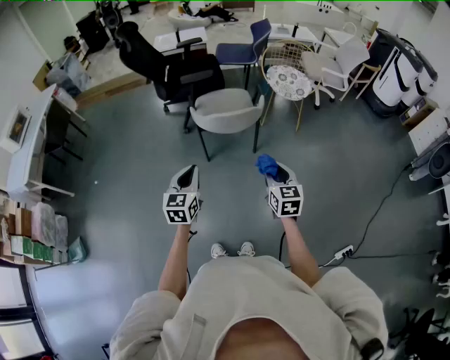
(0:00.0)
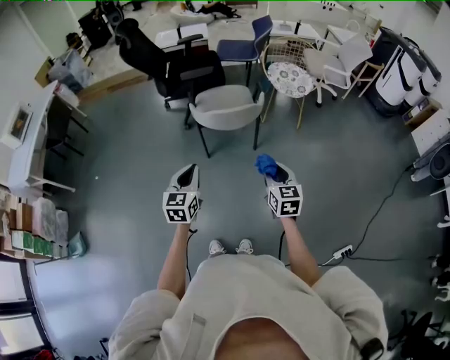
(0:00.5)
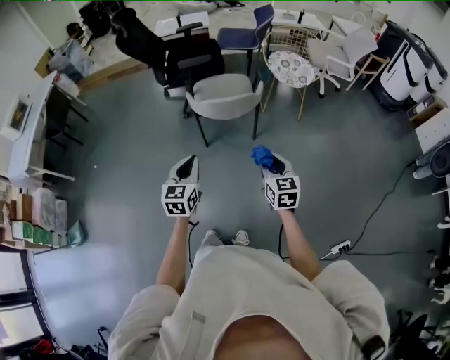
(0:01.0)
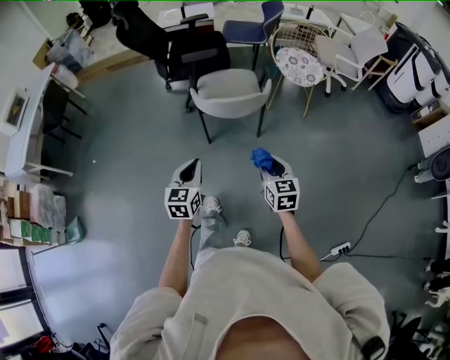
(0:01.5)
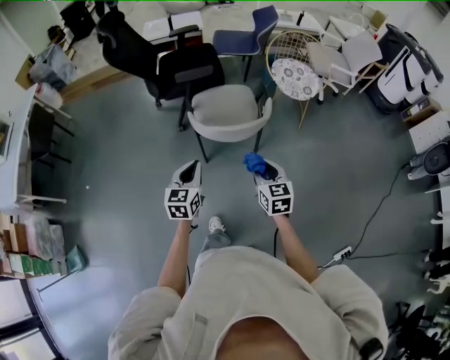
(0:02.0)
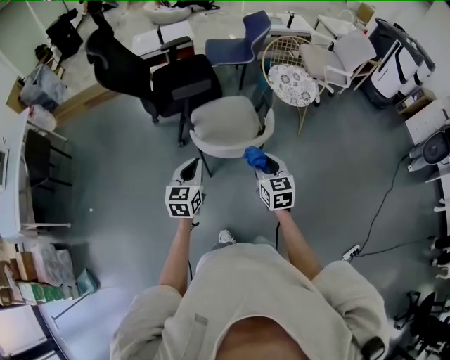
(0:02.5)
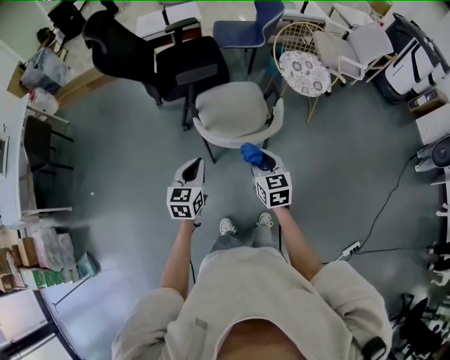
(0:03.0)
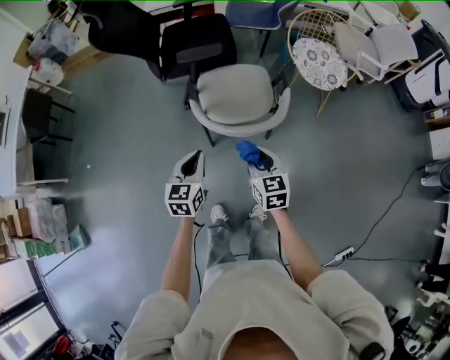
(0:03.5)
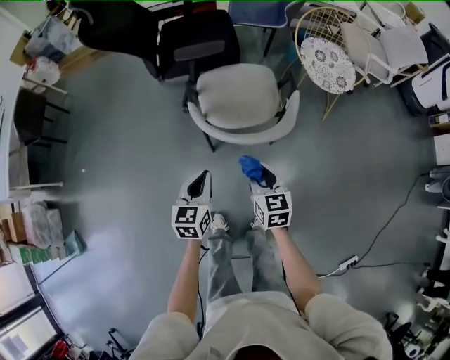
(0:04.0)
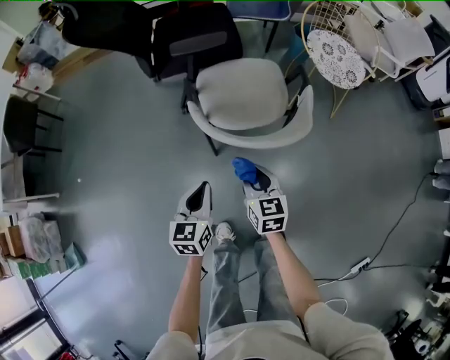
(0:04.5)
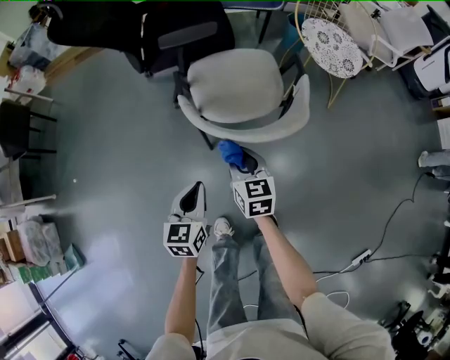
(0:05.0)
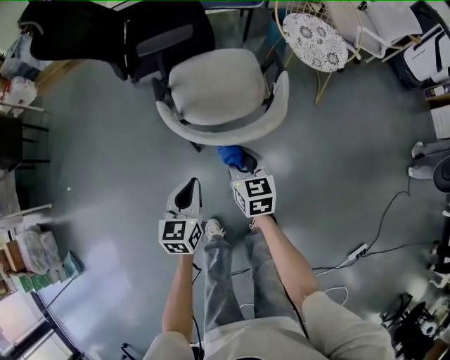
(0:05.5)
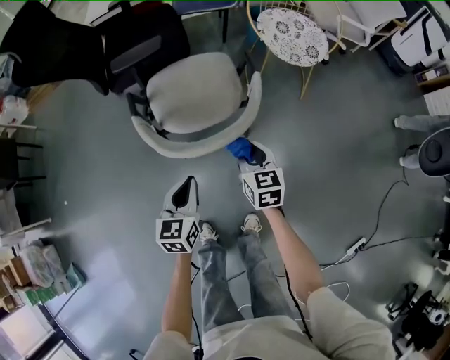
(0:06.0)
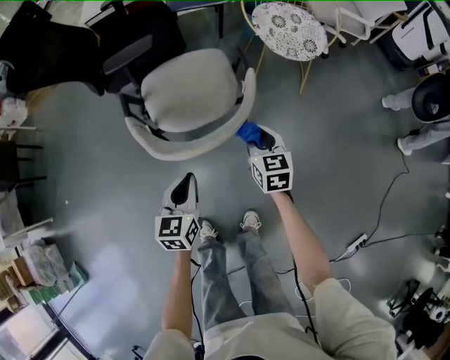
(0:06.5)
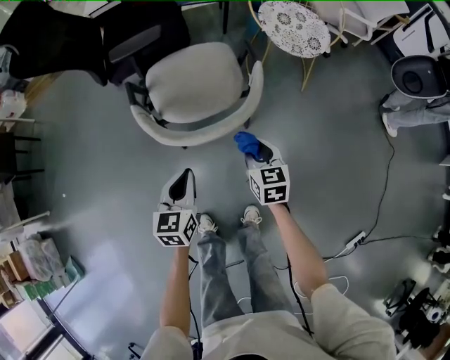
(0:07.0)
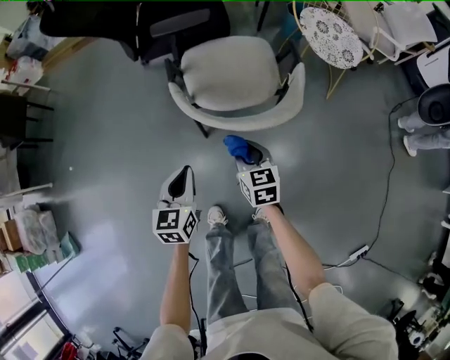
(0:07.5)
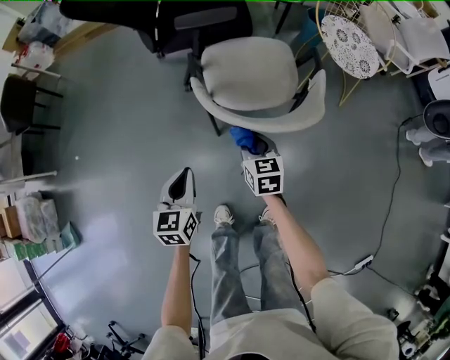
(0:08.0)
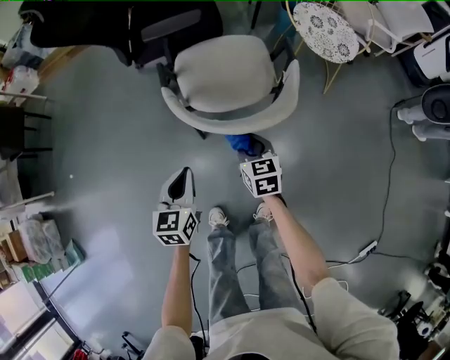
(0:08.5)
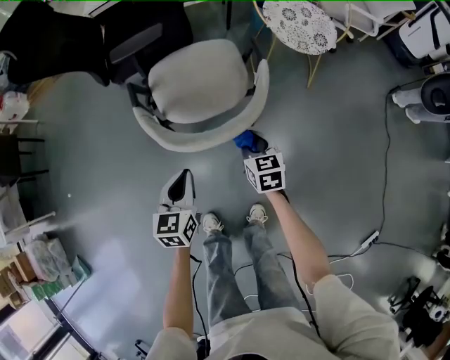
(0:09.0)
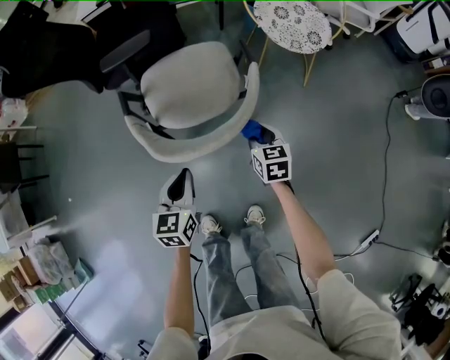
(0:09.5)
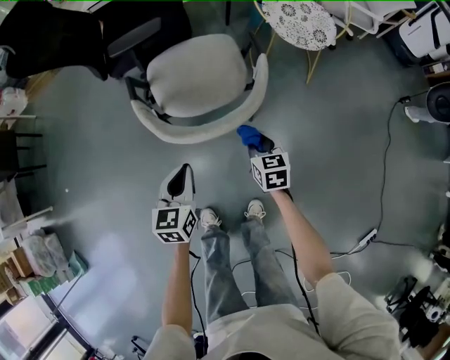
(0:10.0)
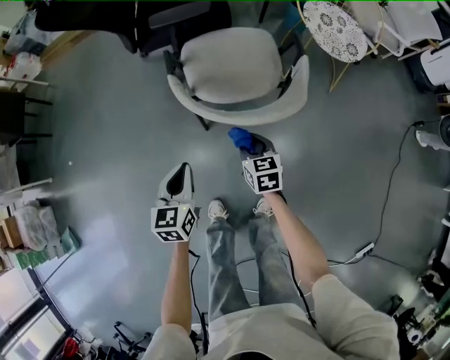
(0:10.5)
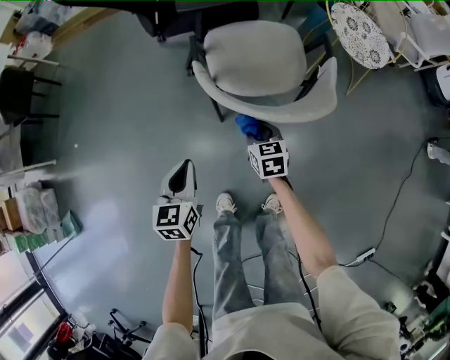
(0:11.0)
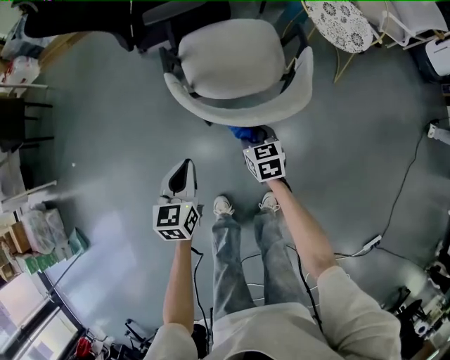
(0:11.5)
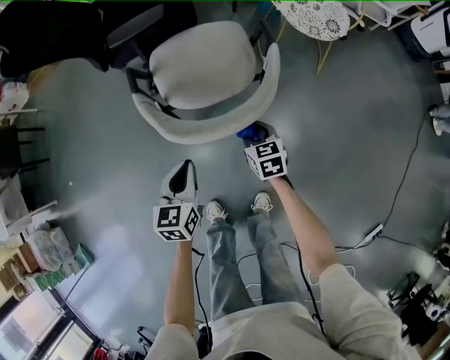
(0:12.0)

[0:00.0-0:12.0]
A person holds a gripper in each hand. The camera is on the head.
0:00.0 to 0:02.0: The left gripper is displaced forward by roughly 20 cm. Meanwhile the right gripper moves forward and to the left, approximately 20 cm.
0:02.0 to 0:04.0: Both grippers move downward and forward, approximately 20 cm.
0:04.0 to 0:06.0: The left gripper goes approximately 15 cm to the right and downward, while the right gripper goes approximately 15 cm to the right, forward and downward.
0:06.0 to 0:08.0: Both grippers travel together to the left, approximately 20 cm.
0:08.0 to 0:10.0: Both grippers travel together to the right, some 20 cm.
0:10.0 to 0:12.0: The right gripper goes to the left and returns, approximately 20 cm each way. The left gripper travels to the left and back again, approximately 15 cm each way.

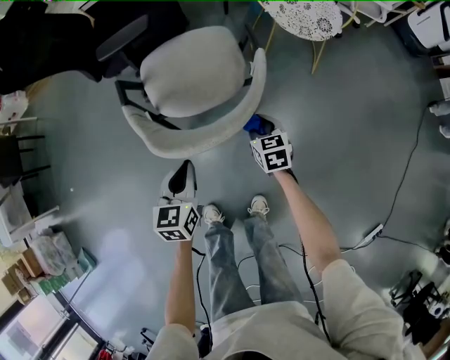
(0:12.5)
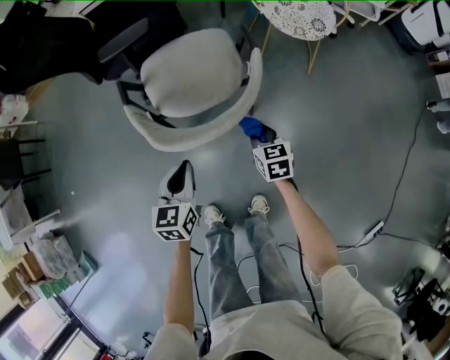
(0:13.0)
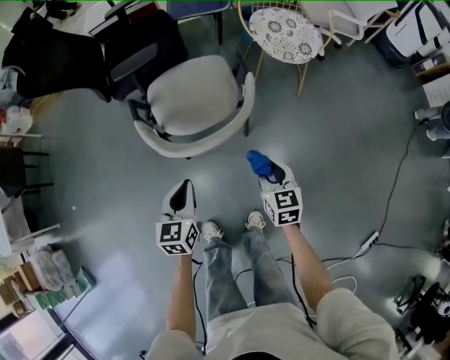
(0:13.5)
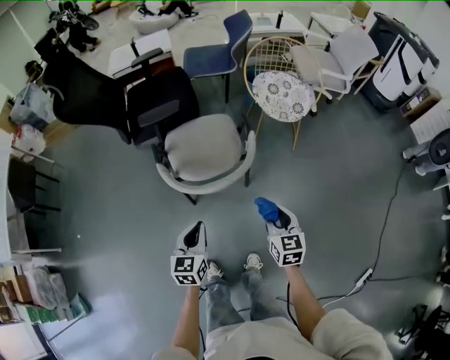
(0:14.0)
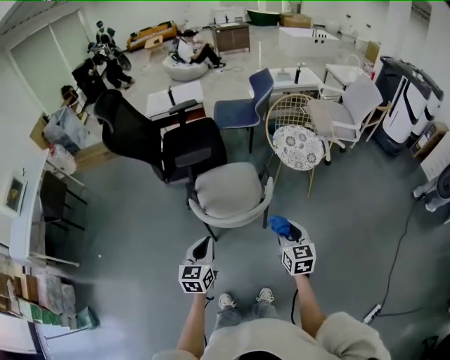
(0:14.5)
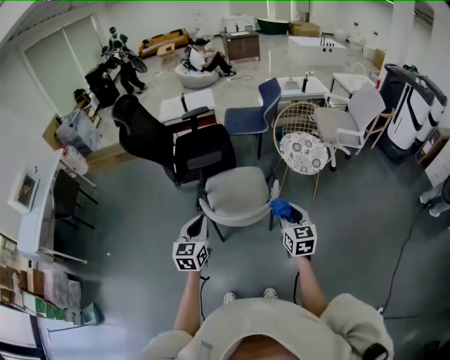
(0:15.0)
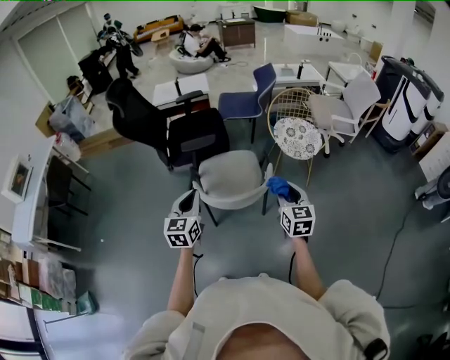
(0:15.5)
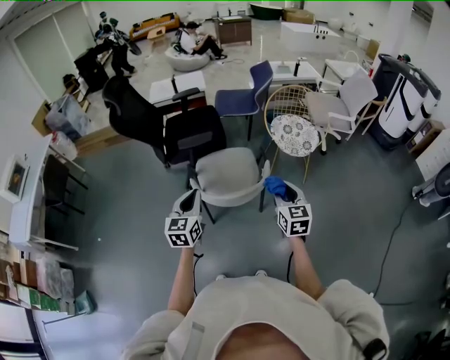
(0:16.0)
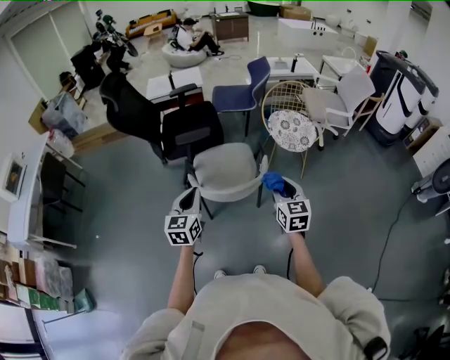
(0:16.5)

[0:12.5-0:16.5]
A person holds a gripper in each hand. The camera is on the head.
0:12.5 to 0:14.5: The two grippers go roughly 30 cm upward. The right gripper turns by approximately 20 degrees.
0:14.5 to 0:16.5: The grippers both shift upward by approximately 10 cm.

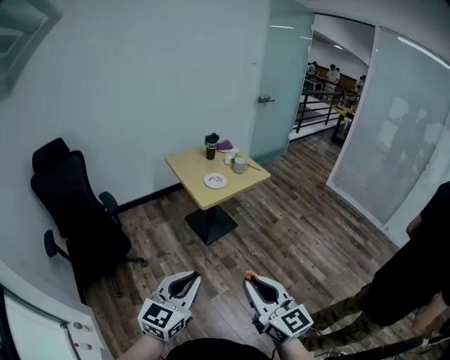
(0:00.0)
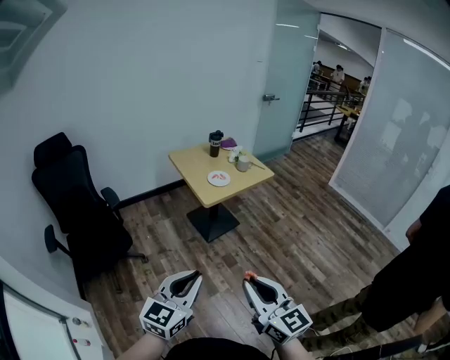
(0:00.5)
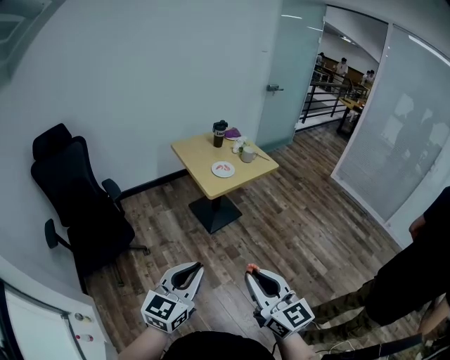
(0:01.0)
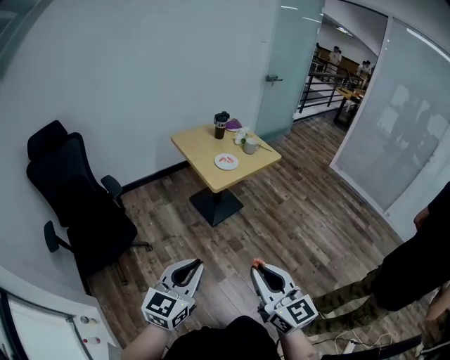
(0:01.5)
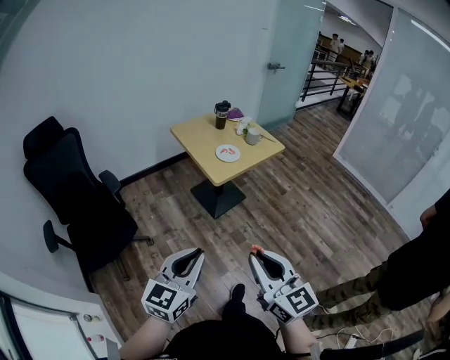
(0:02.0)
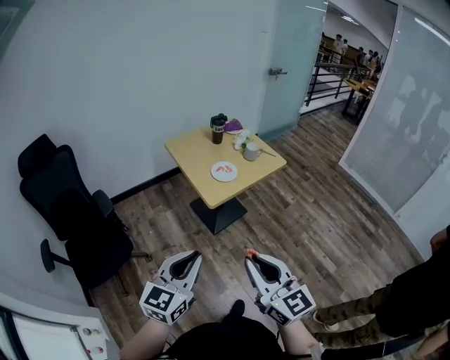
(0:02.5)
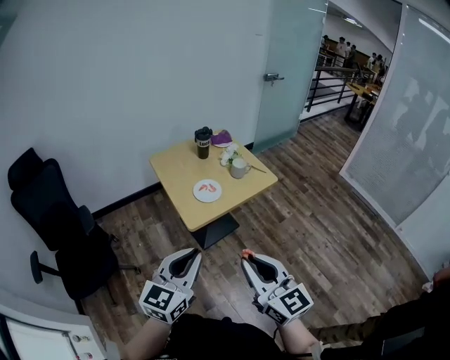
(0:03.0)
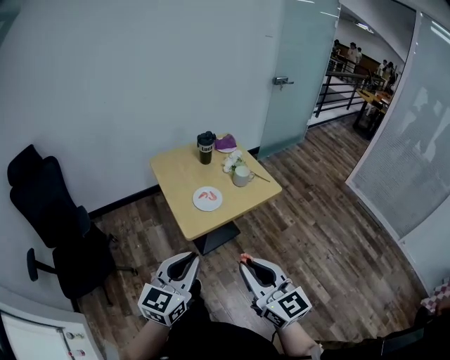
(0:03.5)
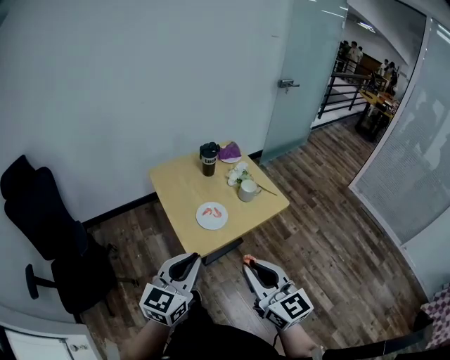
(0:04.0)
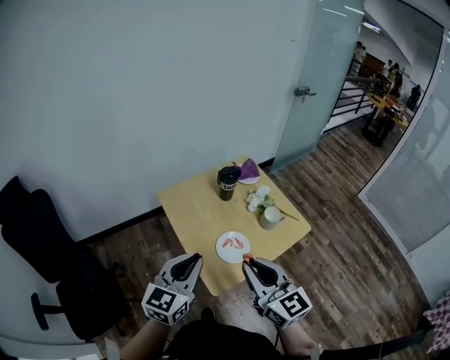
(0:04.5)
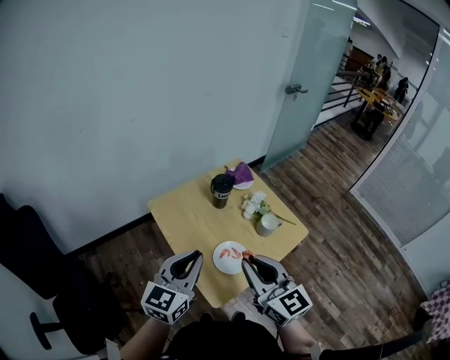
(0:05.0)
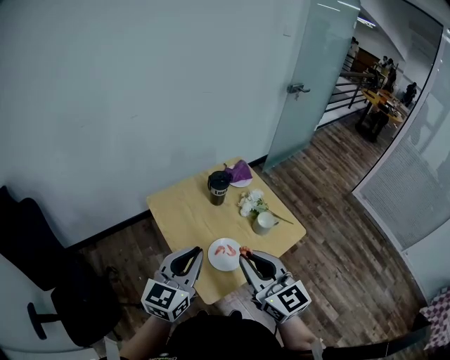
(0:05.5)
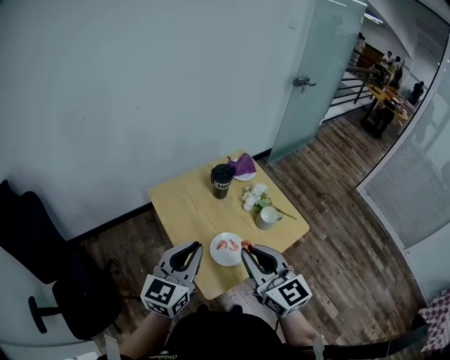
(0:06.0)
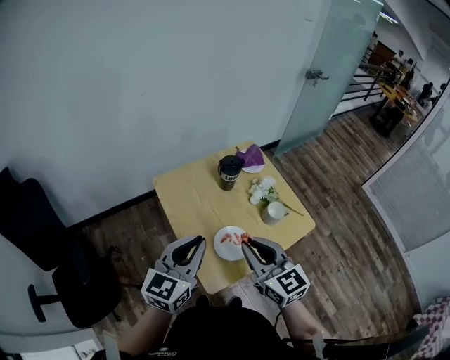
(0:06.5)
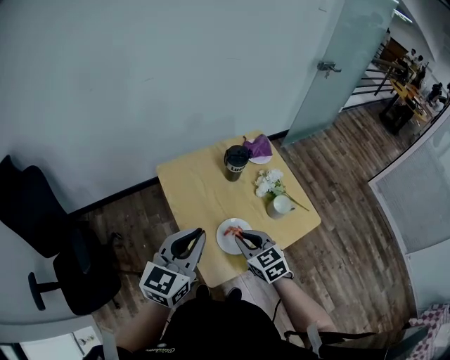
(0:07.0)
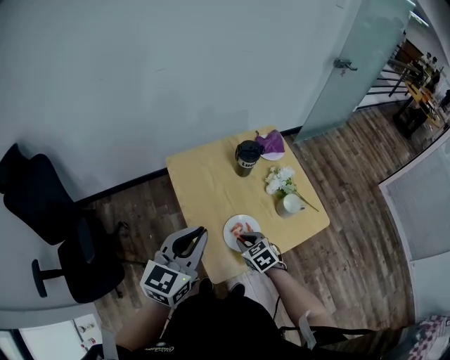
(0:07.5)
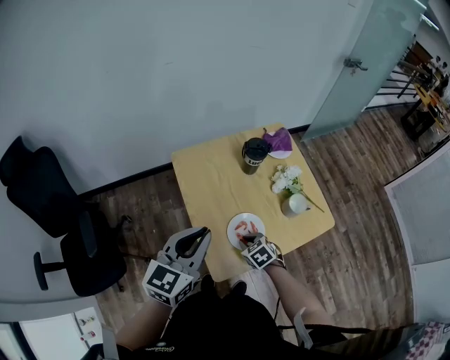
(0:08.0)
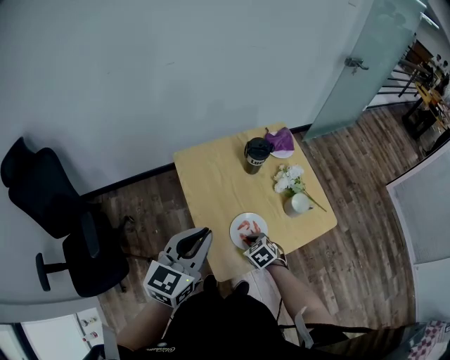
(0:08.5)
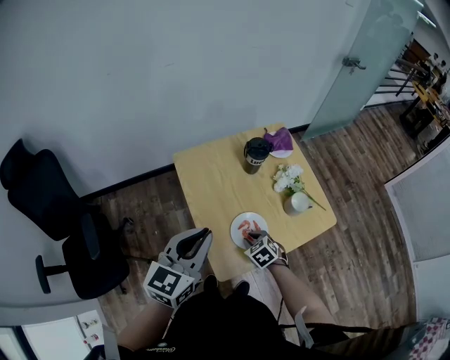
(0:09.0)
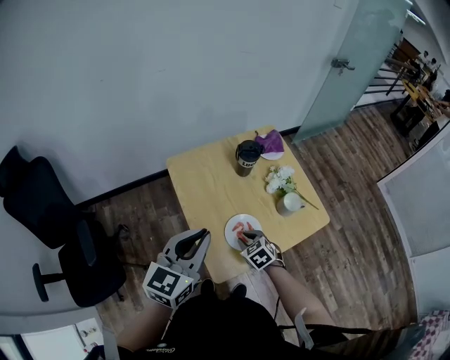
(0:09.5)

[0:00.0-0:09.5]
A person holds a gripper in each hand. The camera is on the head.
0:00.0 to 0:02.0: Both grippers move forward and to the left, about 10 cm.
0:02.0 to 0:04.0: Both grippers are carried forward, roughly 40 cm.
0:04.0 to 0:05.5: Both grippers move forward, about 25 cm.
0:05.5 to 0:07.5: The left gripper changes place by roughly 5 cm. The right gripper goes roughly 30 cm downward, and angles its fingers downward, by some 50 degrees.
0:07.5 to 0:09.5: The grippers stay close to where they were, moving slightly.

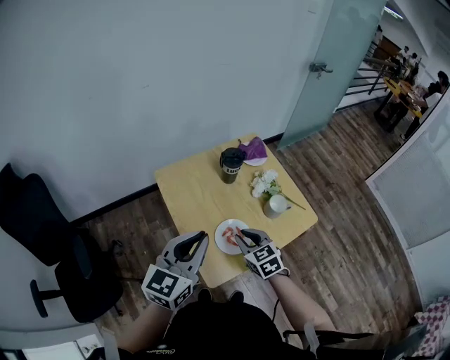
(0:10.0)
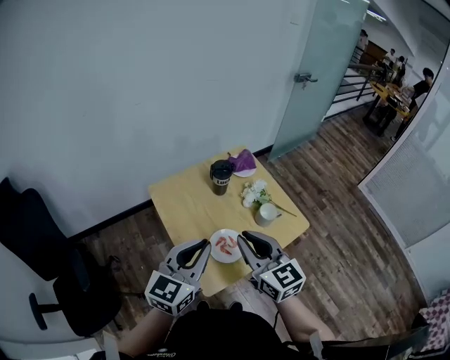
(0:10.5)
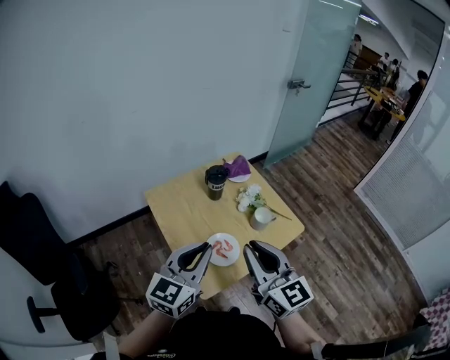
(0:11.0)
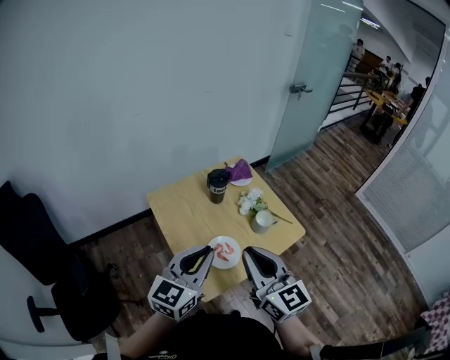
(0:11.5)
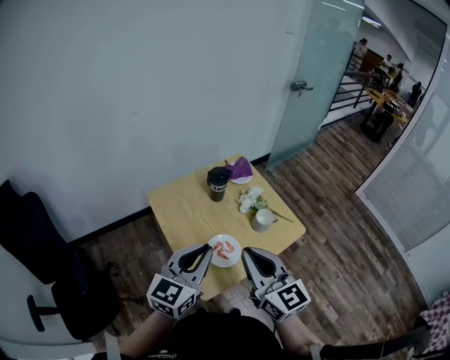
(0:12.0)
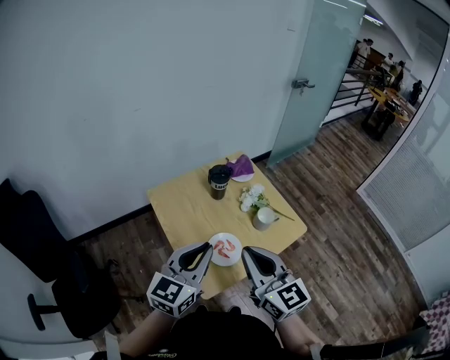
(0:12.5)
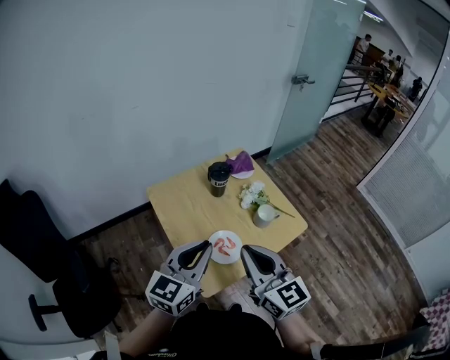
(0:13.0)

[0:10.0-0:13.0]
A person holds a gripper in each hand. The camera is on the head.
0:10.0 to 0:11.5: The left gripper ends up roughly 5 cm from where it was; the right gripper moves upward, some 25 cm, and tilts its fingers approximately 40 degrees upward.
0:11.5 to 0:13.0: The grippers make only small movements.
